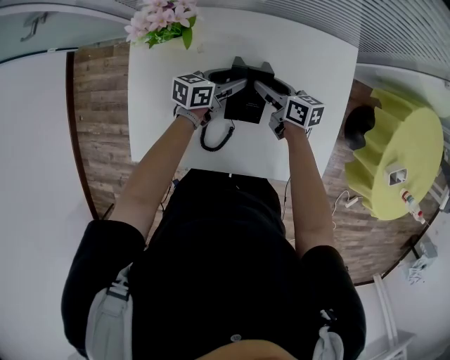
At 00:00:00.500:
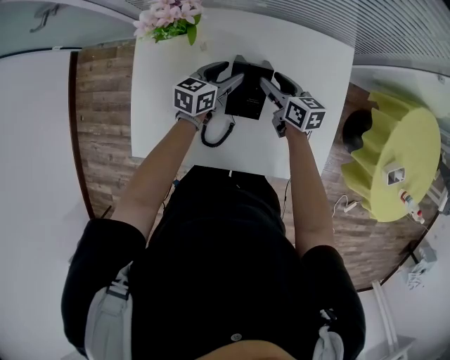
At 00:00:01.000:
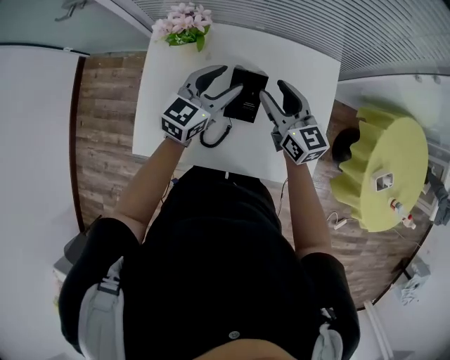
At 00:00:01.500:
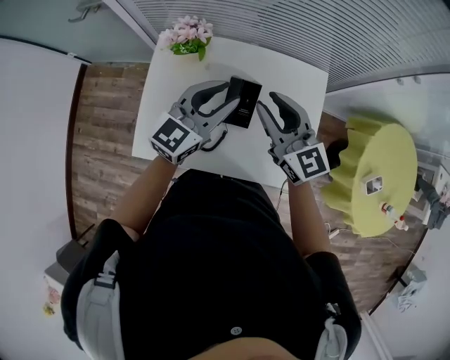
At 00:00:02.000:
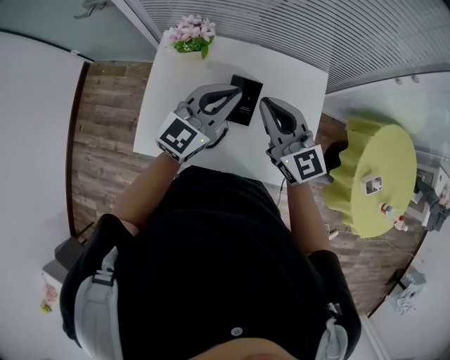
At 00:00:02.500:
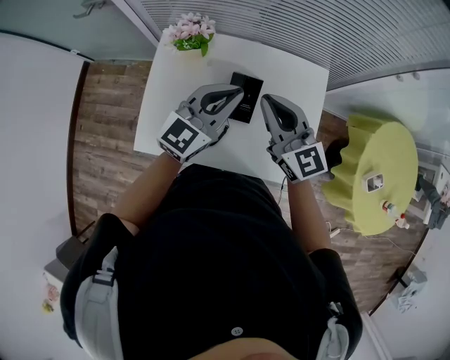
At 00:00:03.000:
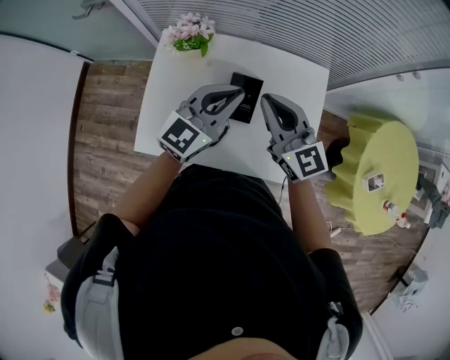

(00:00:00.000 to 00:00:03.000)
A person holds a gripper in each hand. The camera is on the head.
00:00:00.000 - 00:00:01.500: Both grippers move upward, some 35 cm. The left gripper twists about 40 degrees clockwise, seen from behind, while the right gripper rolls counterclockwise, seen from behind, by about 50 degrees.
00:00:01.500 - 00:00:03.000: The right gripper closes its fingers, while the left gripper closes its fingers.

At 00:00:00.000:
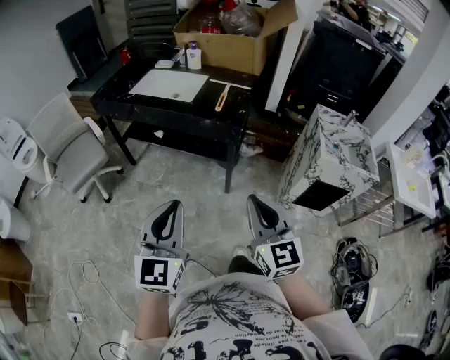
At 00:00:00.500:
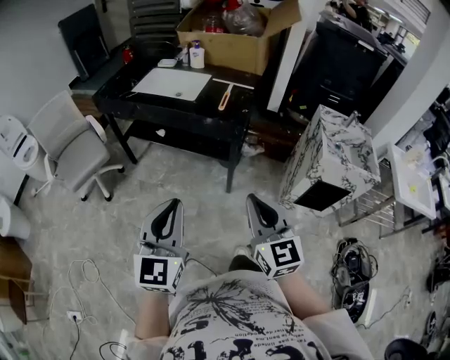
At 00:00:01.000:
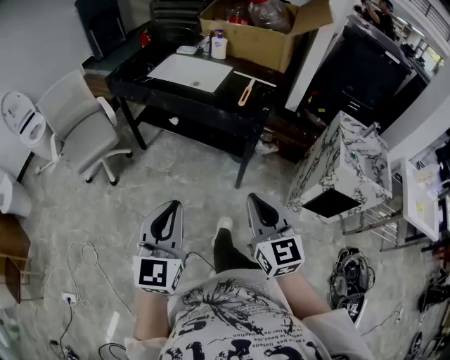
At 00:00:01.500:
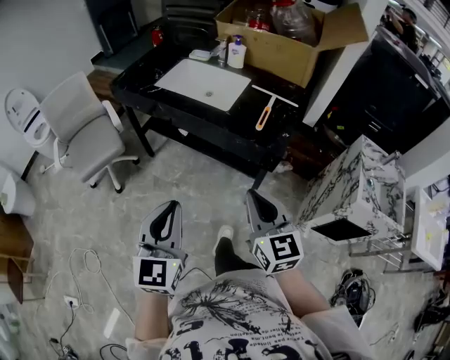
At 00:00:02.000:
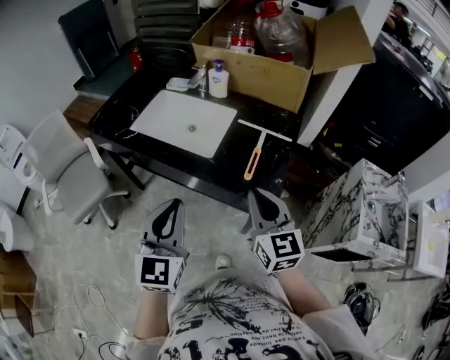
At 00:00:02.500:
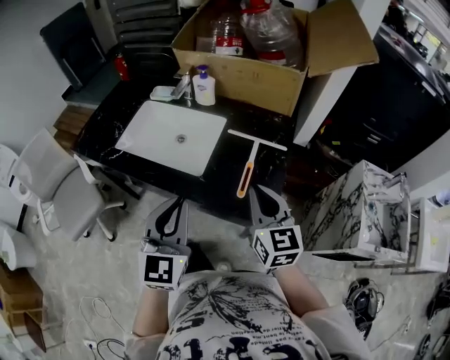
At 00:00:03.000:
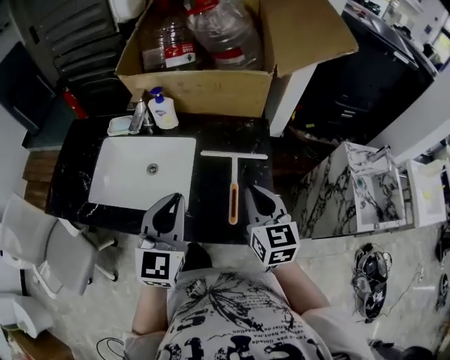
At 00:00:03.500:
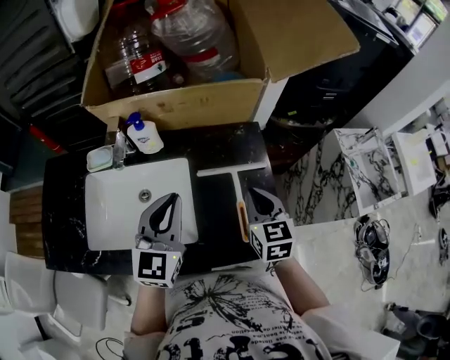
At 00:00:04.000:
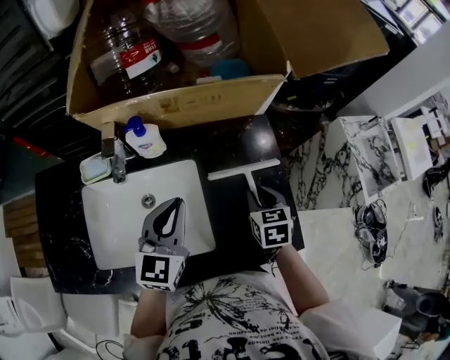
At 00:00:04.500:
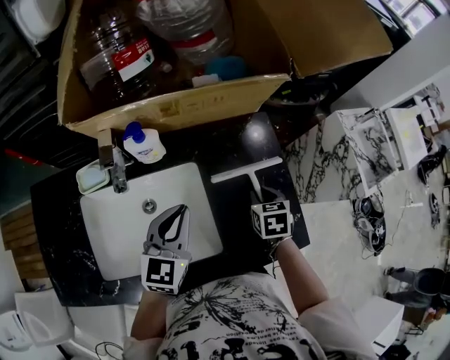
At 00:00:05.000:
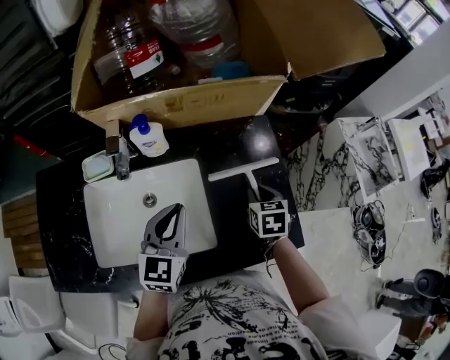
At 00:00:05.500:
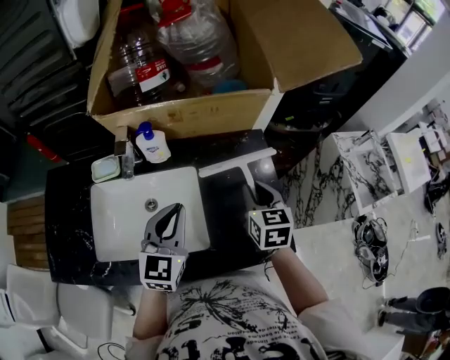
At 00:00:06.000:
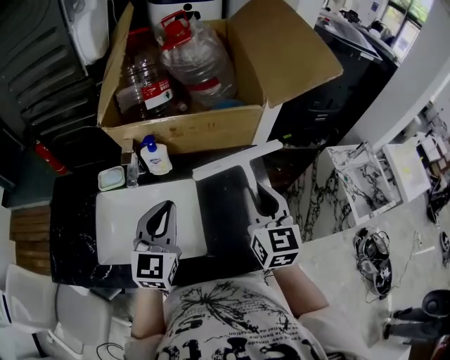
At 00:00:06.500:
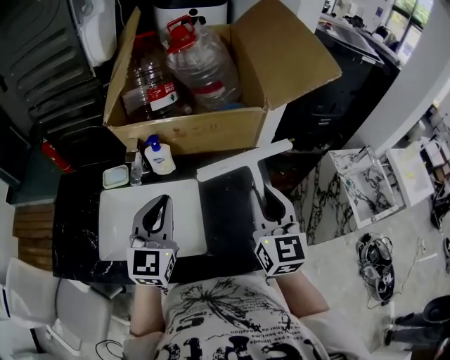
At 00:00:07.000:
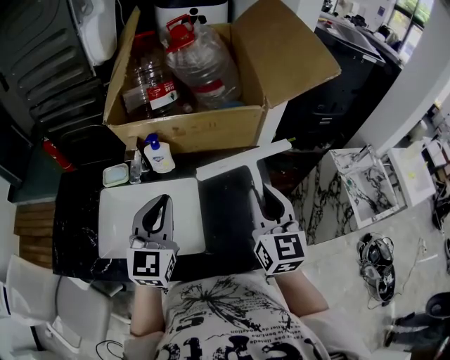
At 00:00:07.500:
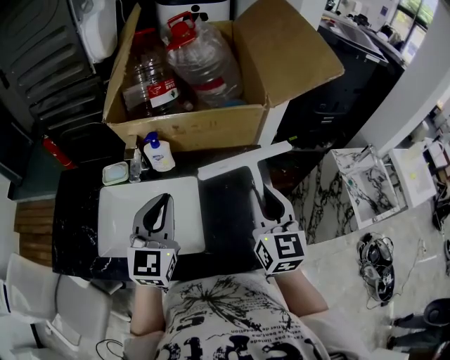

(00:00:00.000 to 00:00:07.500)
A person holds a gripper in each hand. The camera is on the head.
00:00:00.000 - 00:00:02.000: Both grippers travel together forward, approximately 40 cm.
00:00:02.000 - 00:00:04.000: The left gripper ends up roughly 40 cm from where it was, and turns by some 40 degrees, while the right gripper shifts by approximately 35 cm, tilts its fingers roughly 40 degrees downward, and opens up.
00:00:04.000 - 00:00:05.500: The right gripper goes roughly 10 cm upward.
00:00:05.500 - 00:00:07.500: The right gripper shifts about 15 cm upward, and swivels roughly 30 degrees; the left gripper shifts roughly 10 cm upward.

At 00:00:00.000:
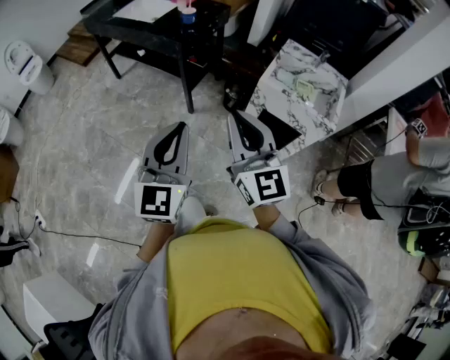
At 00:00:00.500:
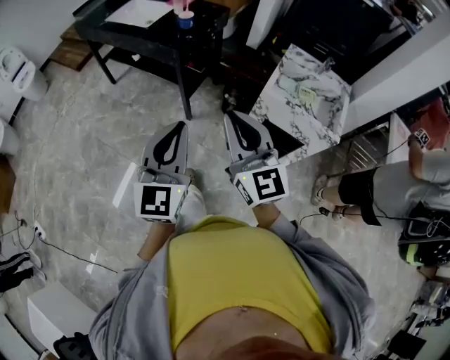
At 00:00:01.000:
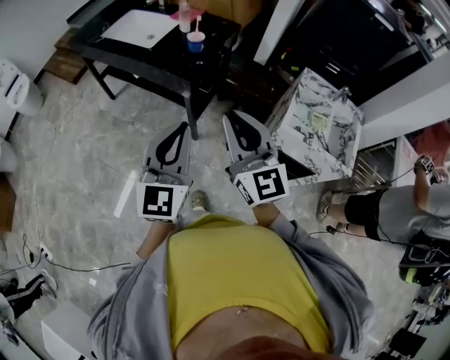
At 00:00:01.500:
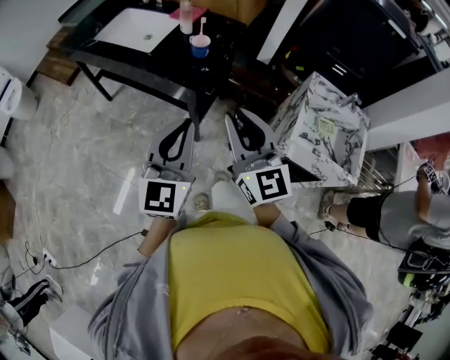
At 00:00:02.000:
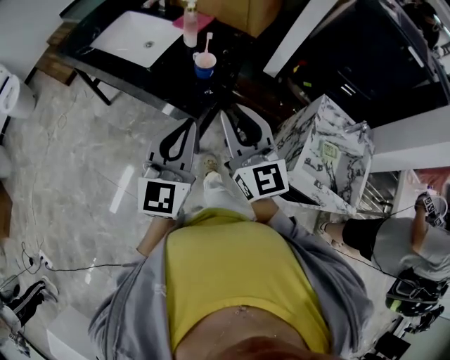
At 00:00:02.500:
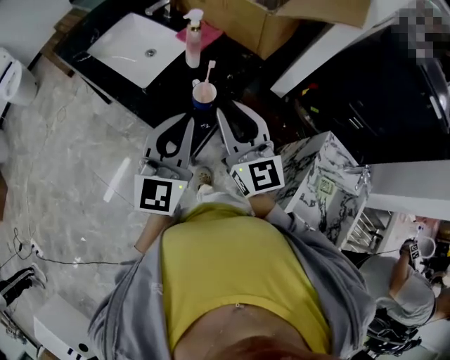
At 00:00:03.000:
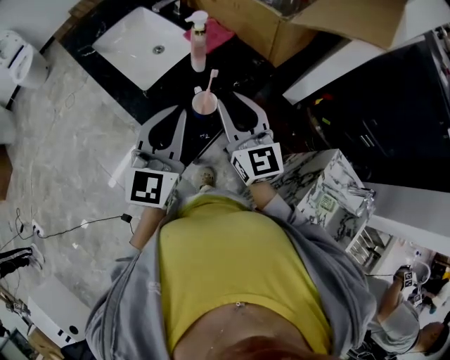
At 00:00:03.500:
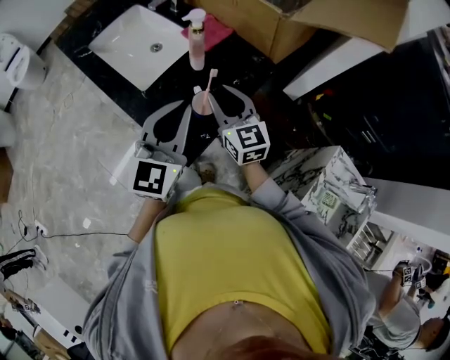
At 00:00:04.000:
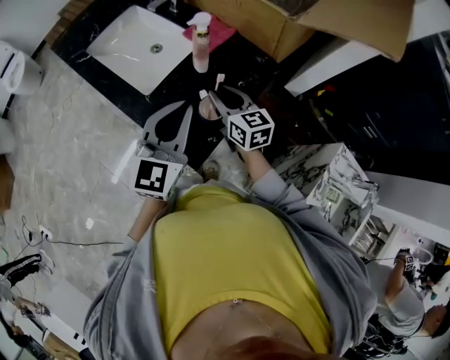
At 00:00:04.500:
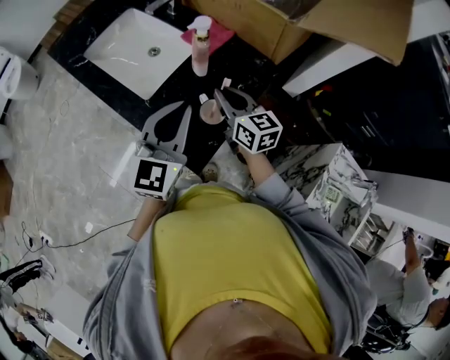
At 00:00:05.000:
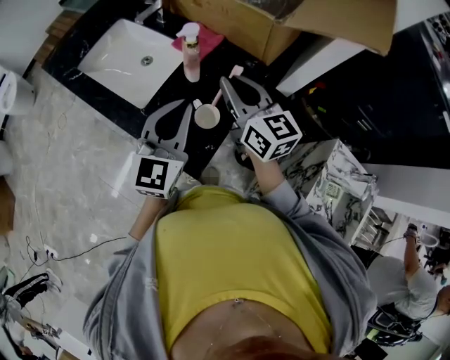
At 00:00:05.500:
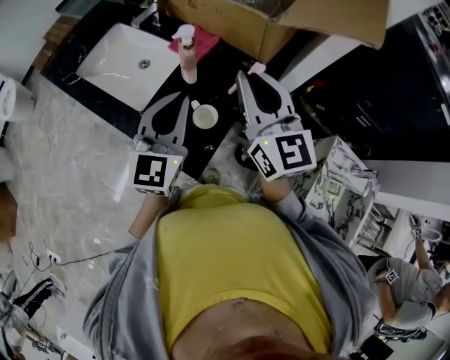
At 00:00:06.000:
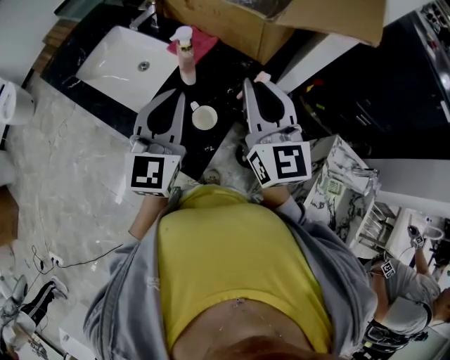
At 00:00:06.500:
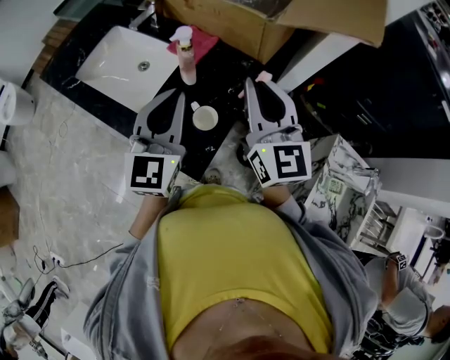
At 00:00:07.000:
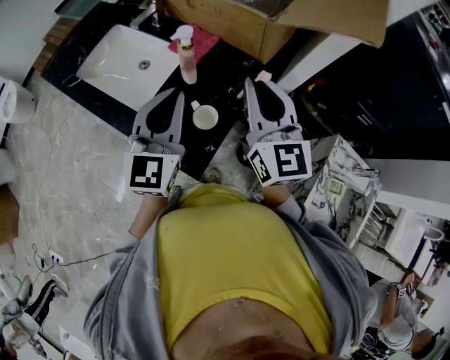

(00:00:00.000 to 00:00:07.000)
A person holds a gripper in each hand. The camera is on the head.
00:00:00.000 - 00:00:02.000: The pair of grippers is taken forward, approximately 50 cm.
00:00:02.000 - 00:00:03.500: The right gripper is displaced forward and downward by approximately 30 cm, and rotates about 20 degrees; the left gripper travels forward by some 25 cm.
00:00:03.500 - 00:00:05.000: The right gripper shifts about 10 cm upward, and closes.
00:00:05.000 - 00:00:07.000: The right gripper moves upward, approximately 5 cm, and swivels about 20 degrees.

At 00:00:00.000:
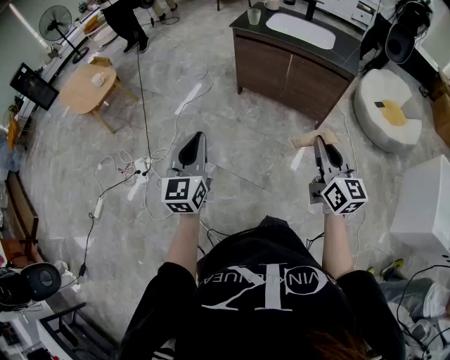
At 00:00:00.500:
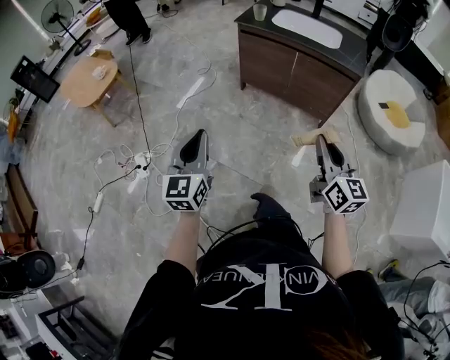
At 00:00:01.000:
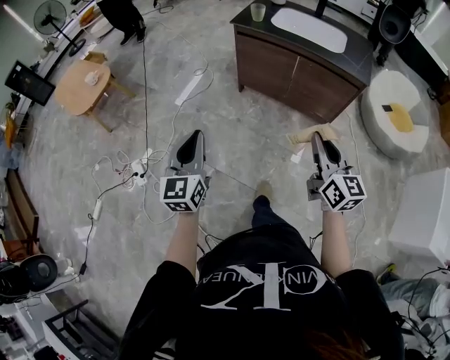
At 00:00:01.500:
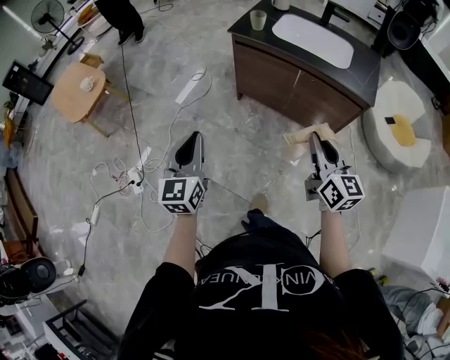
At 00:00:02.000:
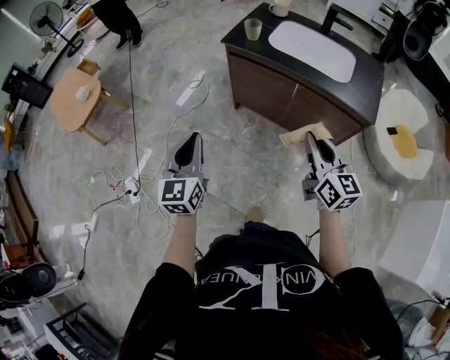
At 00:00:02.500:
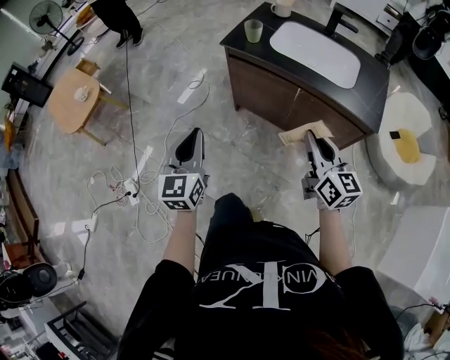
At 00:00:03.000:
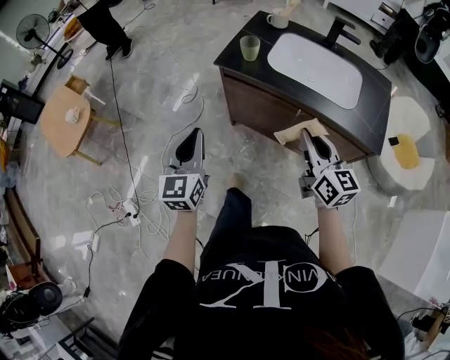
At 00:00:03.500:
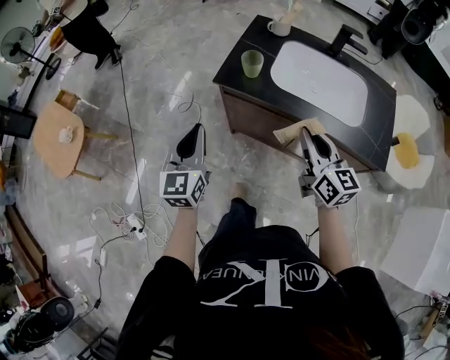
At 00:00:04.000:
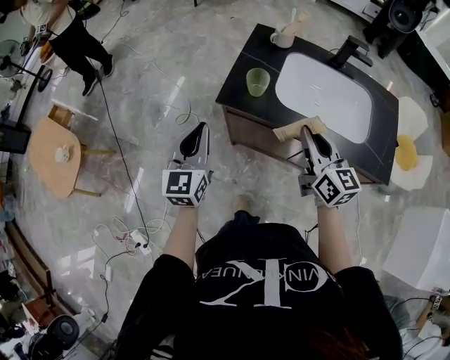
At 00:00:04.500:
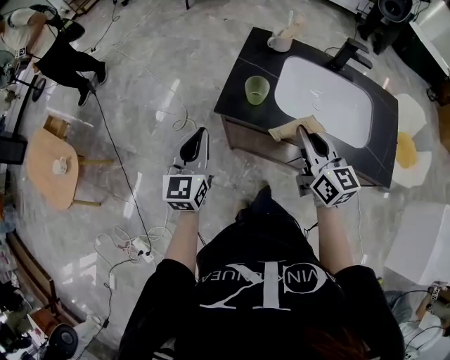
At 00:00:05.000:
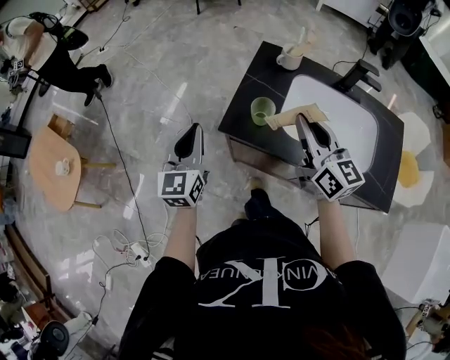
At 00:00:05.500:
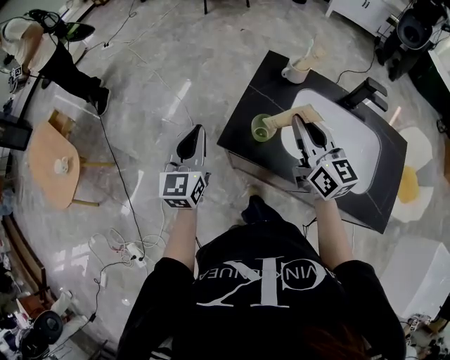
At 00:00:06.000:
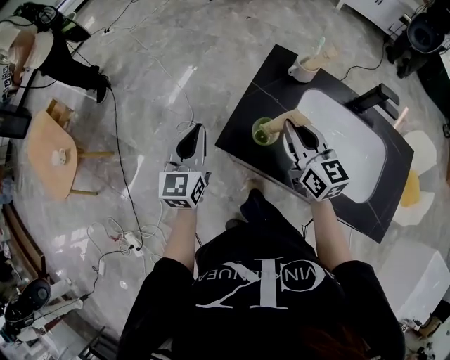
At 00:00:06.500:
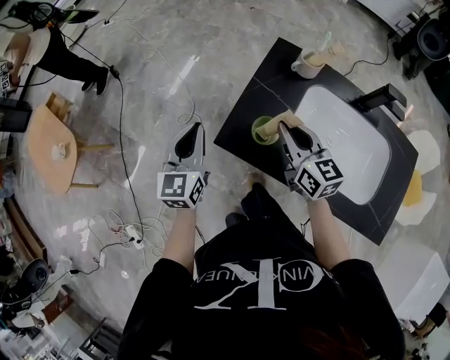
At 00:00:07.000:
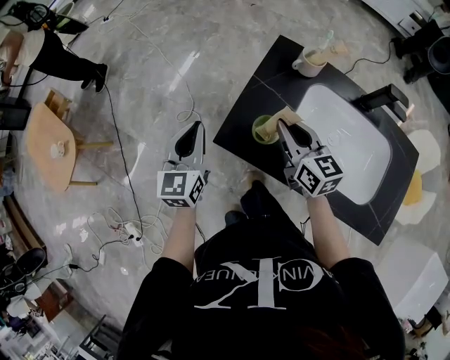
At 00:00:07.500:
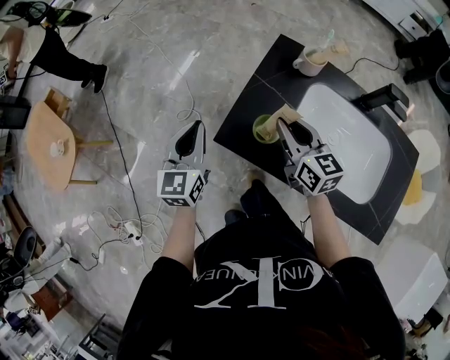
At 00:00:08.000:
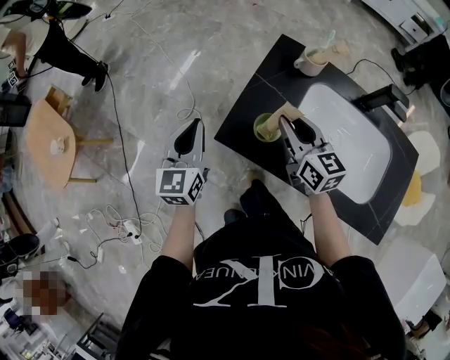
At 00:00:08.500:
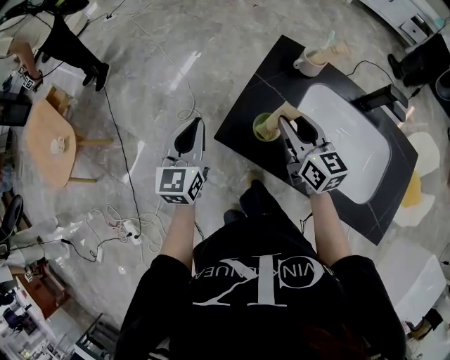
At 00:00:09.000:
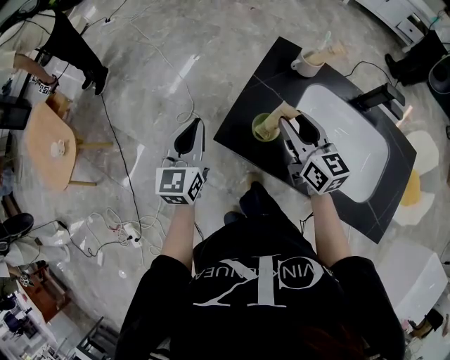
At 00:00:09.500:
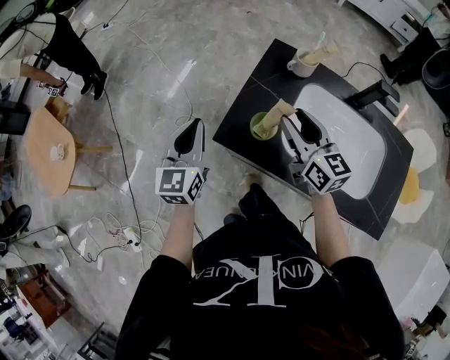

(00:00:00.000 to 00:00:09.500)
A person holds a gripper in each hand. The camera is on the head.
00:00:00.000 - 00:00:02.000: The grippers both shift forward by about 35 cm.
00:00:02.000 - 00:00:04.000: Both grippers travel together forward, some 40 cm.
00:00:04.000 - 00:00:05.500: The grippers both shift forward by about 15 cm.
00:00:05.500 - 00:00:07.500: The left gripper shifts by approximately 5 cm, while the right gripper heads downward, covering some 10 cm.
00:00:07.500 - 00:00:09.500: The right gripper changes place by roughly 5 cm, and opens up.
